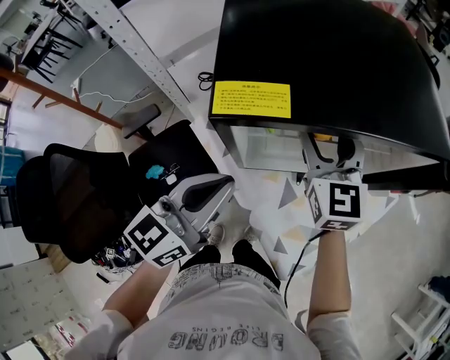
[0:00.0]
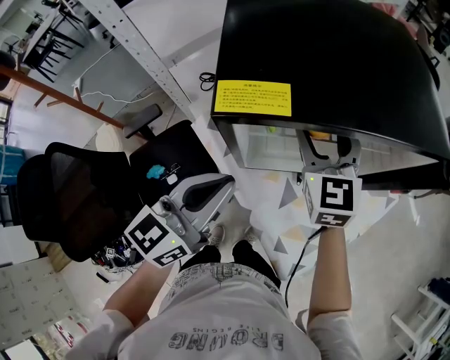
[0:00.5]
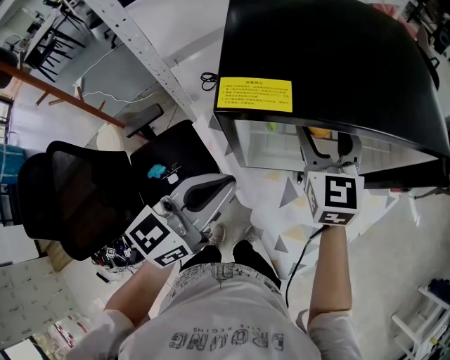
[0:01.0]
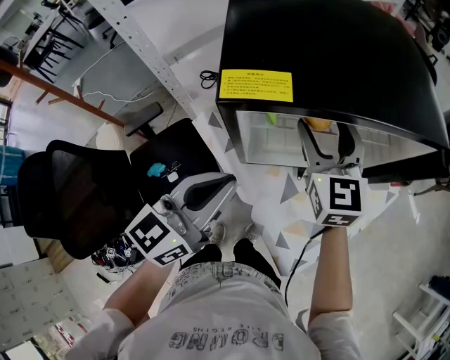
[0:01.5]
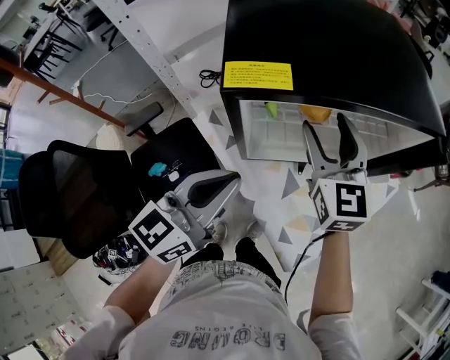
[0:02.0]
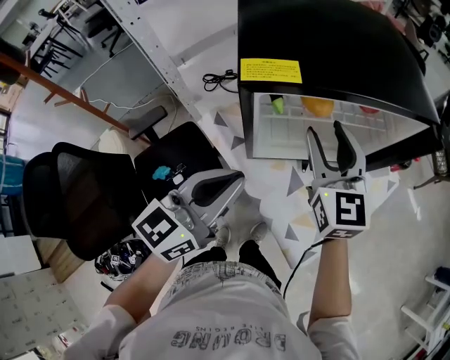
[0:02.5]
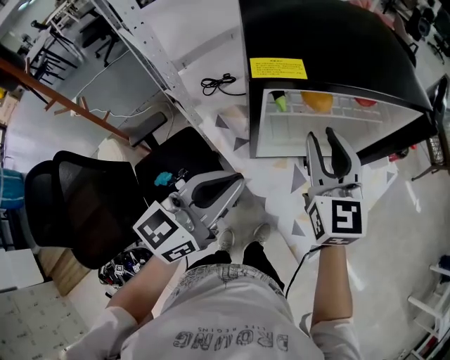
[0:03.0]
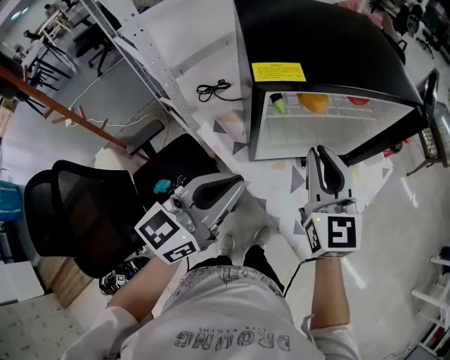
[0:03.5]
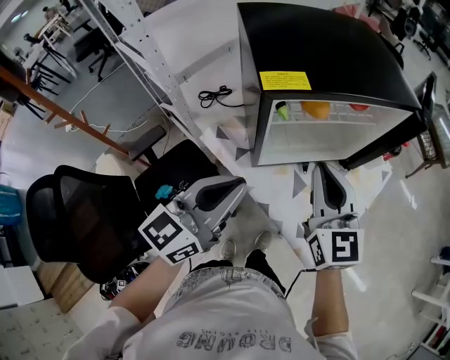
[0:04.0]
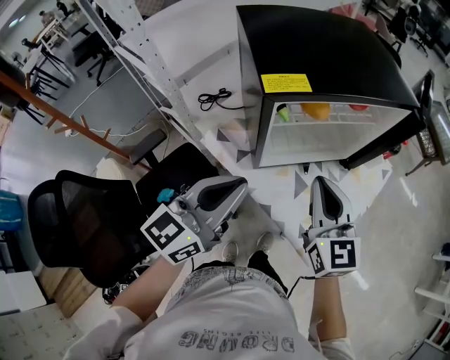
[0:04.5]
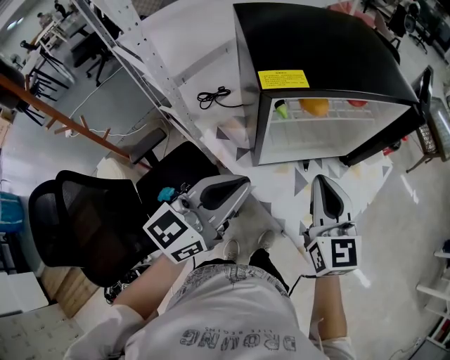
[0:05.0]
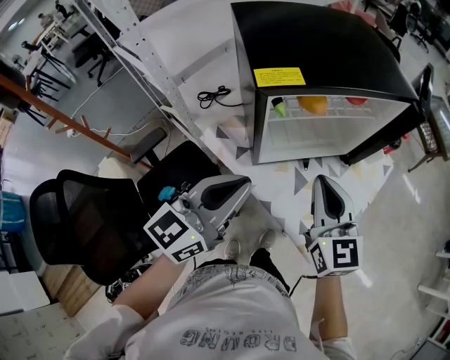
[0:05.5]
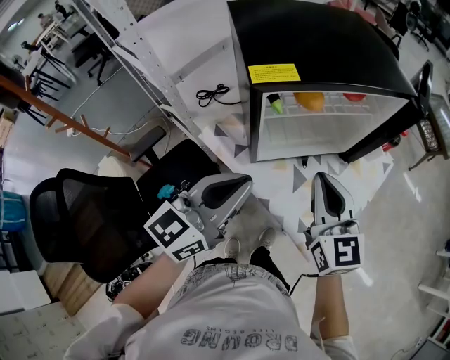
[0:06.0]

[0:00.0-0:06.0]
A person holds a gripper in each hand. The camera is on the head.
0:00.0 to 0:02.0: The grippers make only small movements.
0:02.0 to 0:04.0: The left gripper goes some 5 cm backward. The right gripper is displaced backward by about 15 cm, and closes its fingers.
0:04.0 to 0:06.0: The grippers move only a little.

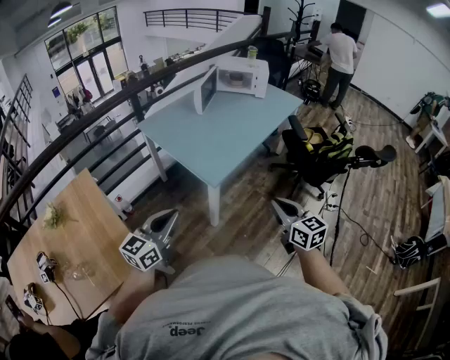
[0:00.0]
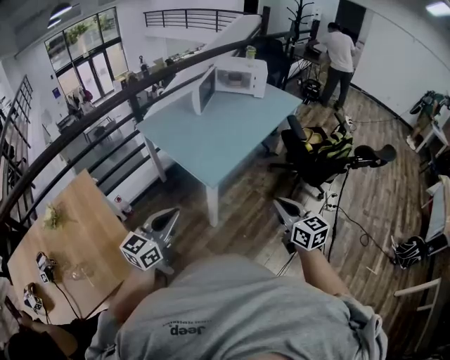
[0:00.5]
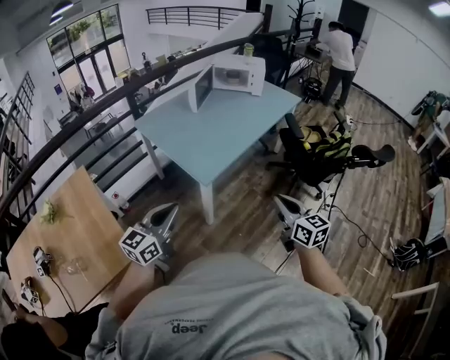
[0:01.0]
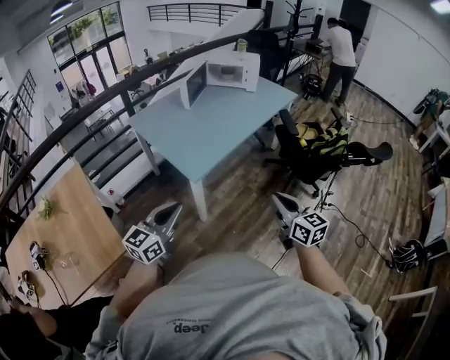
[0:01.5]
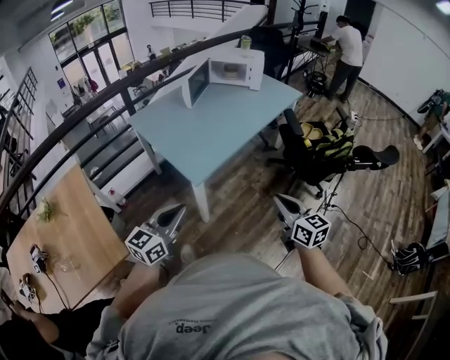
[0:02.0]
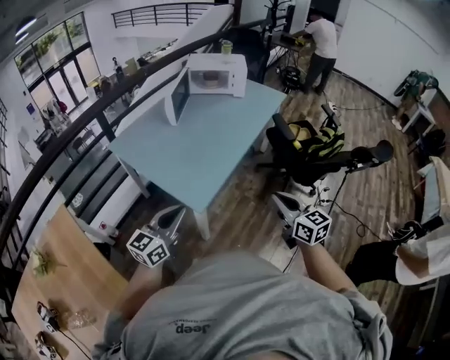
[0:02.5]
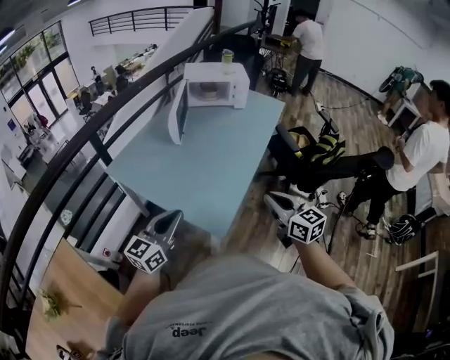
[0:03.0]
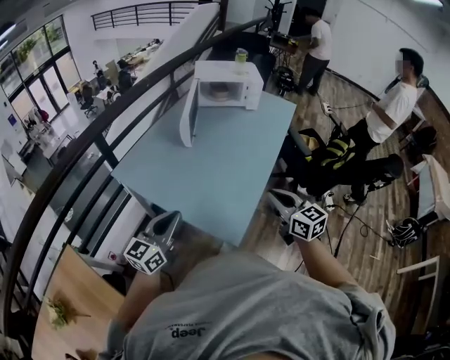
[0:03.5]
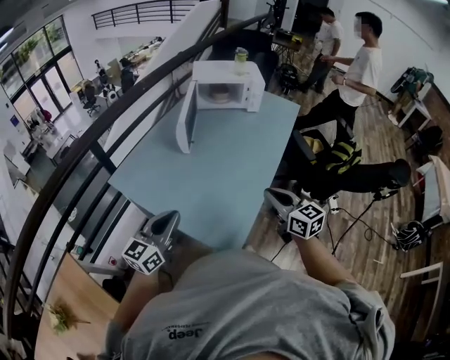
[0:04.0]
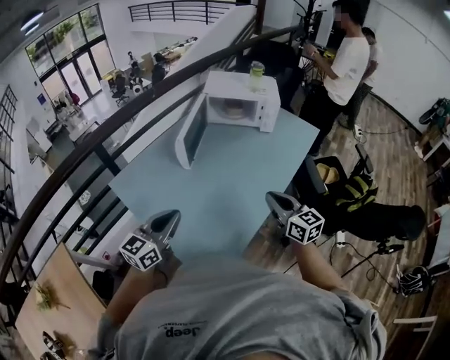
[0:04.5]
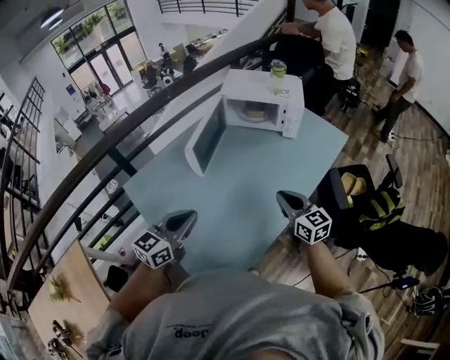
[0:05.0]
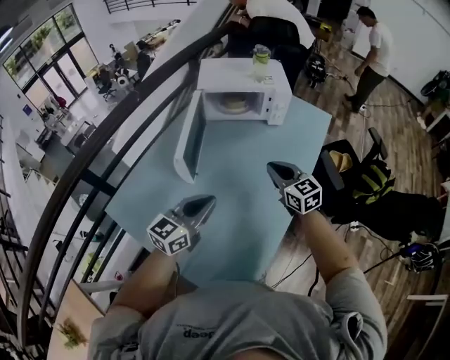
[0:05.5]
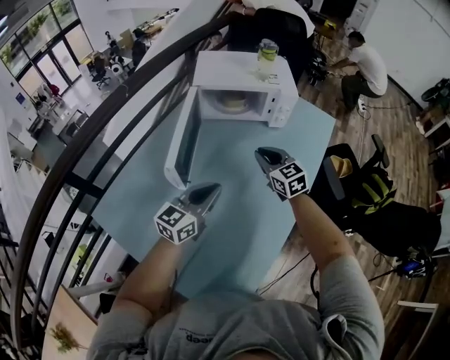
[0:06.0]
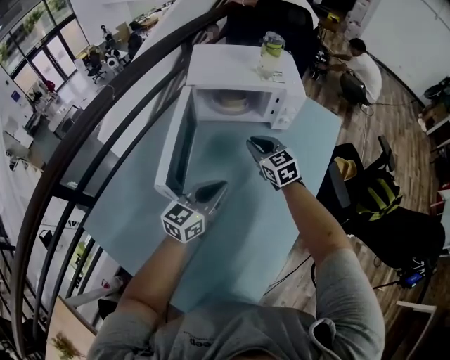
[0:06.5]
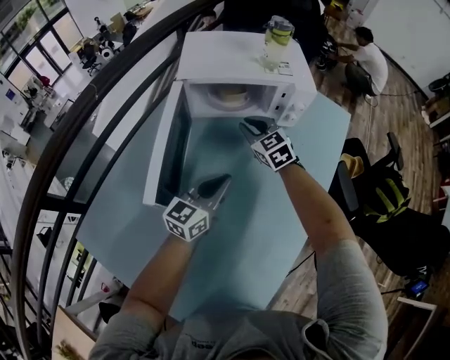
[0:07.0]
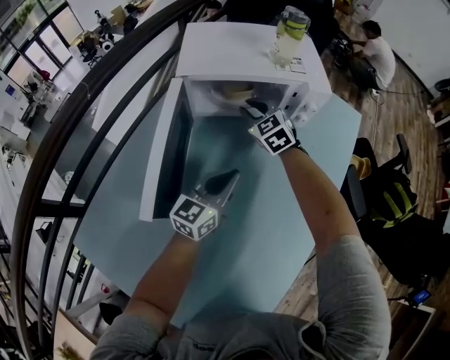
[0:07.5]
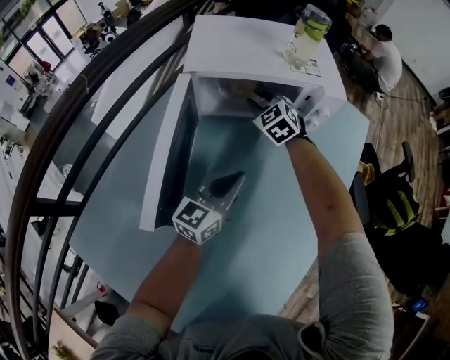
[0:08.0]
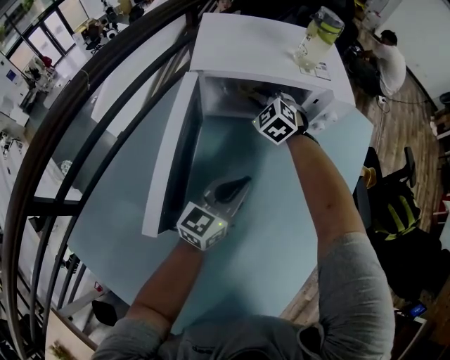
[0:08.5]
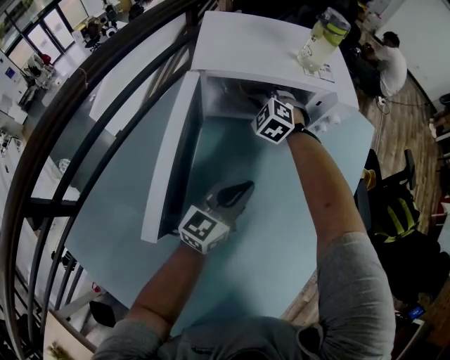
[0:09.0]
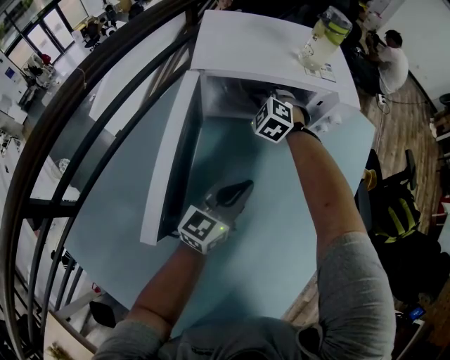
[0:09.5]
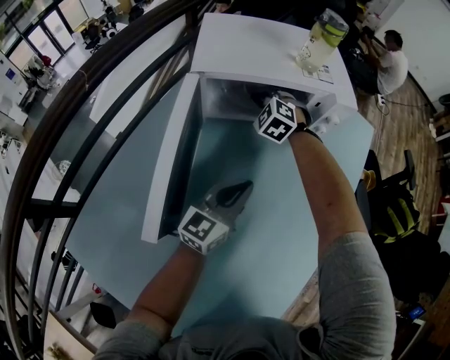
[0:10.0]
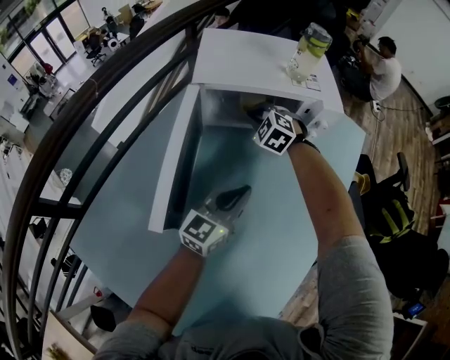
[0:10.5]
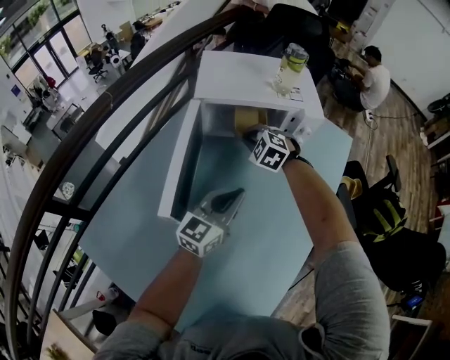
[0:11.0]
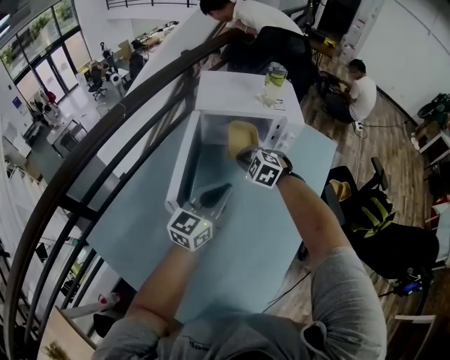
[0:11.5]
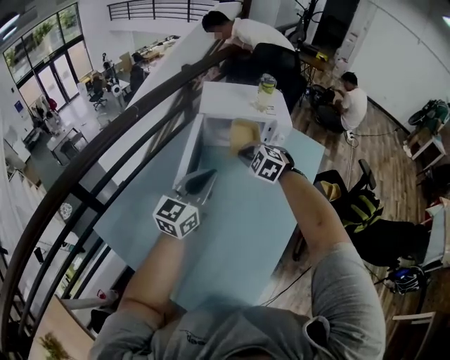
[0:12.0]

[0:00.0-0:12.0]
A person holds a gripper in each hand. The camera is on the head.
0:00.0 to 0:02.0: The left gripper is displaced to the right by some 15 cm. The right gripper travels to the right and forward by approximately 15 cm.
0:02.0 to 0:04.0: Both grippers are carried forward and to the left, approximately 50 cm.
0:04.0 to 0:06.0: The two grippers travel together, forward, some 50 cm.
0:06.0 to 0:08.0: Both grippers travel together forward and downward, roughly 30 cm. The right gripper swivels some 30 degrees.
0:08.0 to 0:10.0: The right gripper swivels some 20 degrees.
0:10.0 to 0:12.0: The right gripper heads backward and upward, covering some 40 cm, while the left gripper moves upward and backward, roughly 35 cm.

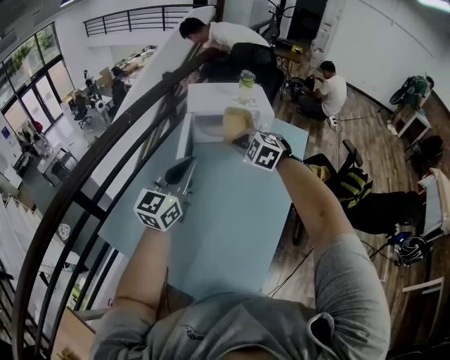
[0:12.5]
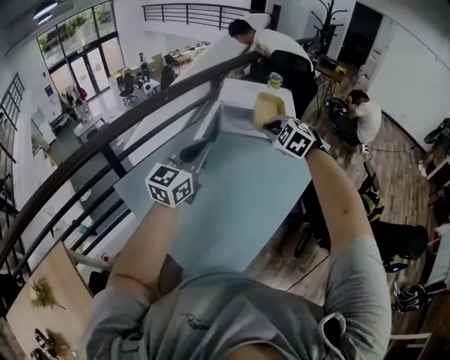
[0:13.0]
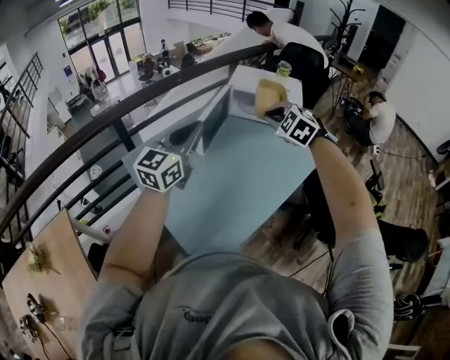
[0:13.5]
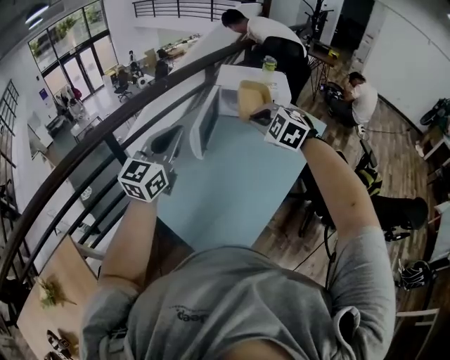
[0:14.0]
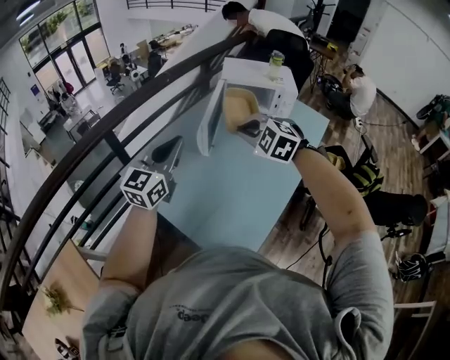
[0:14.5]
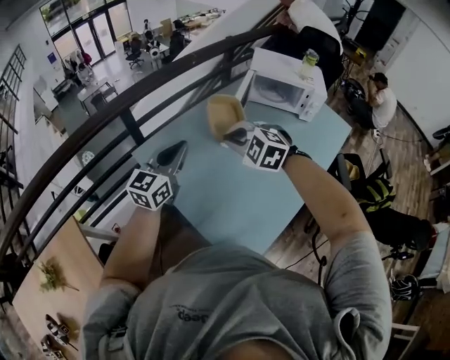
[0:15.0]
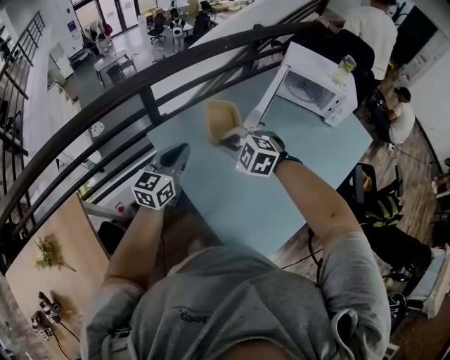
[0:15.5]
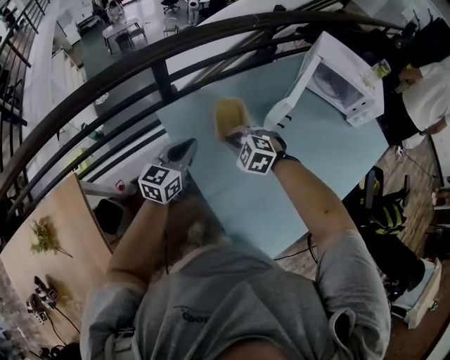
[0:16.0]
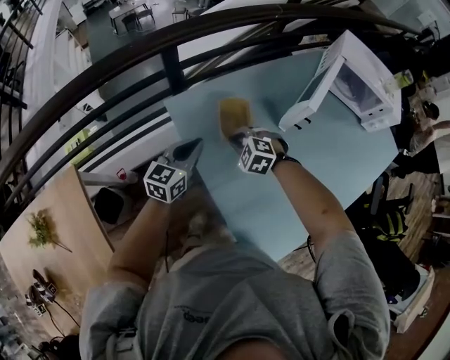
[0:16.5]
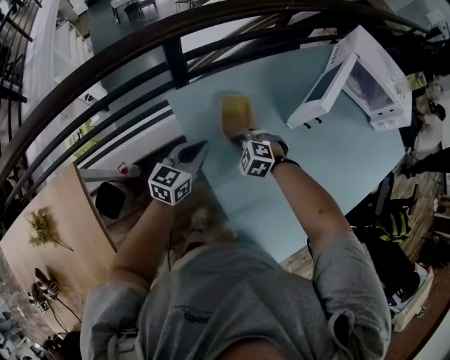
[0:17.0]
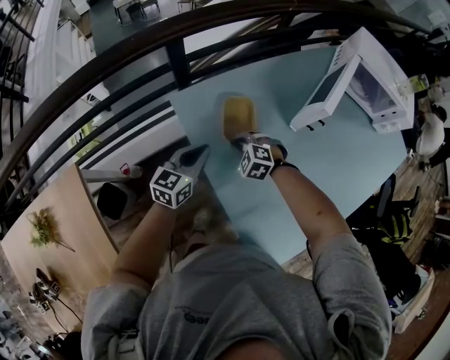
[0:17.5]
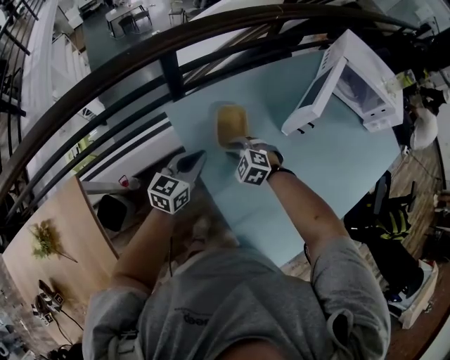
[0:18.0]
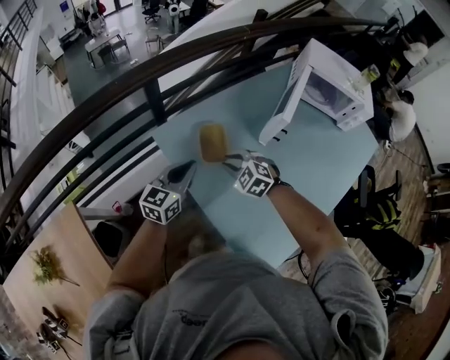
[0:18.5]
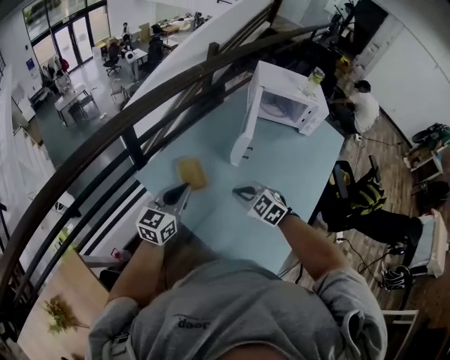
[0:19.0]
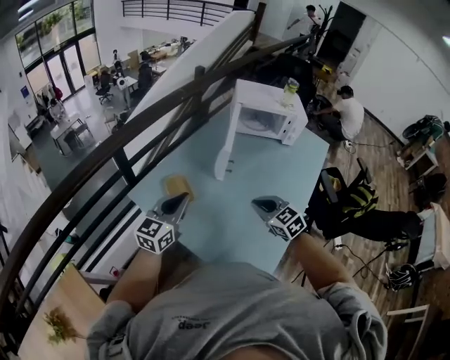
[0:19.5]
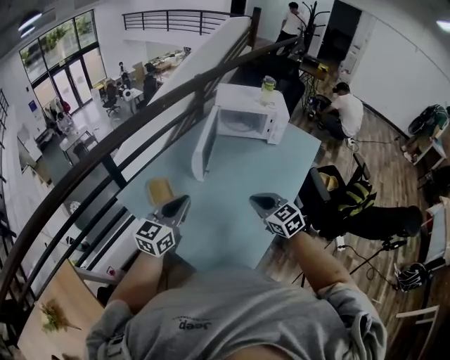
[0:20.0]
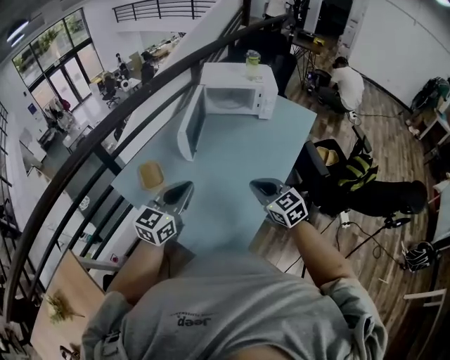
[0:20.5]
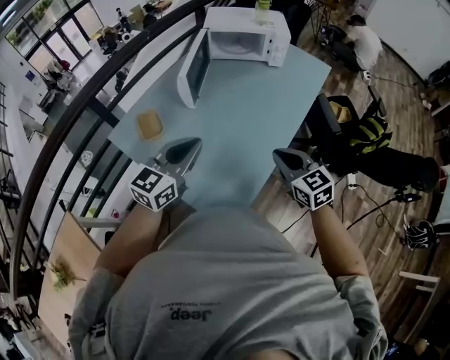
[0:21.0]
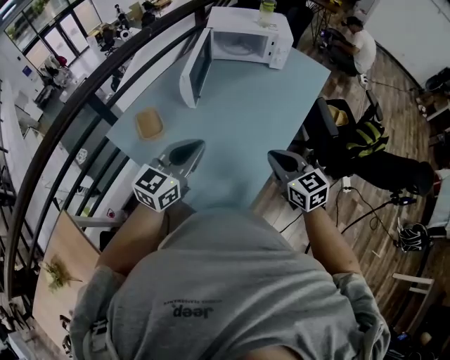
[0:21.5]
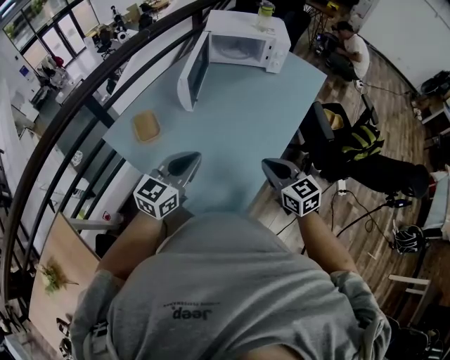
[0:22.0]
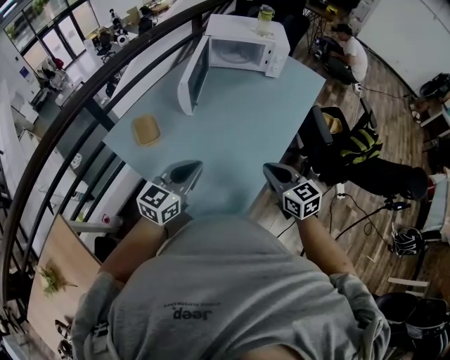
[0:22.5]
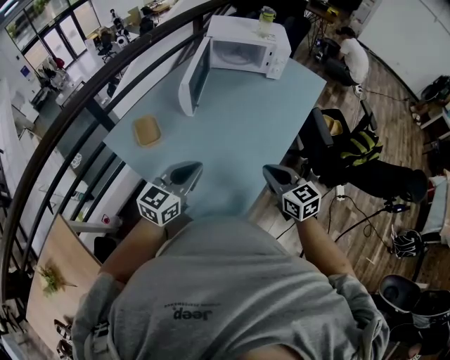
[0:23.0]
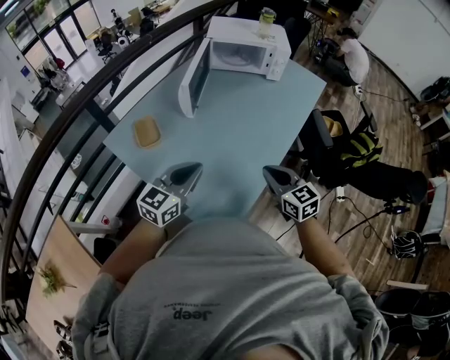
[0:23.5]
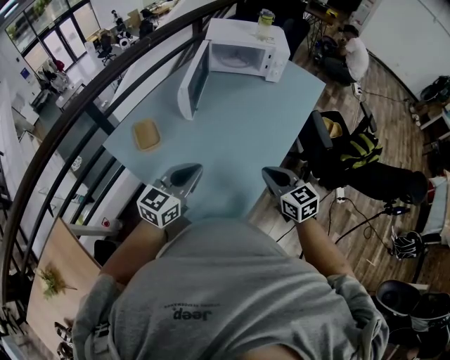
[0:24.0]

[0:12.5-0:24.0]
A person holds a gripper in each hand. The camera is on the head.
0:12.5 to 0:14.5: The right gripper travels backward by some 20 cm, while the left gripper moves backward and to the left, some 20 cm.
0:14.5 to 0:16.5: The two grippers go roughly 40 cm downward, to the left and forward. The right gripper turns by approximately 30 degrees; the left gripper turns by approximately 30 degrees.
0:16.5 to 0:18.5: The right gripper shifts by roughly 5 cm.
0:18.5 to 0:20.0: Both grippers travel together to the right, upward and backward, roughly 40 cm. The right gripper turns by some 50 degrees. Meanwhile the left gripper turns by roughly 20 degrees.
0:20.0 to 0:22.0: The right gripper shifts approximately 10 cm to the right and backward. The left gripper goes approximately 10 cm to the right and downward.
0:22.0 to 0:24.0: There are only small adjustments of the grippers.
